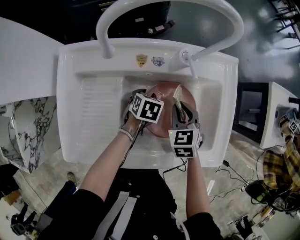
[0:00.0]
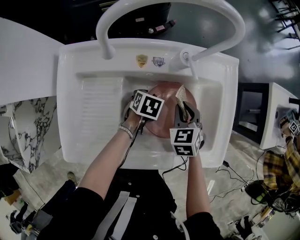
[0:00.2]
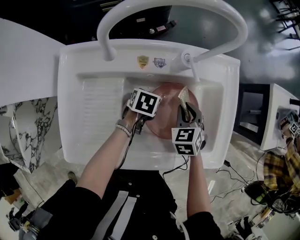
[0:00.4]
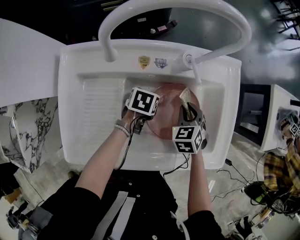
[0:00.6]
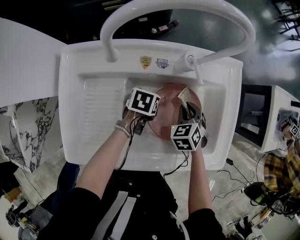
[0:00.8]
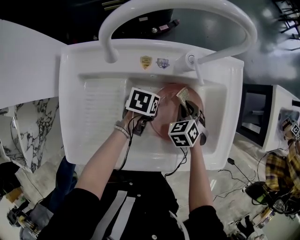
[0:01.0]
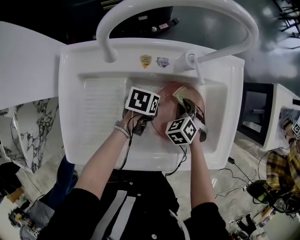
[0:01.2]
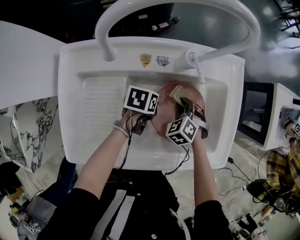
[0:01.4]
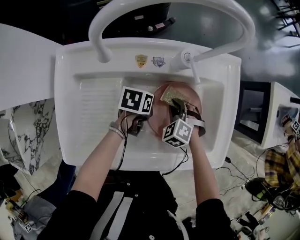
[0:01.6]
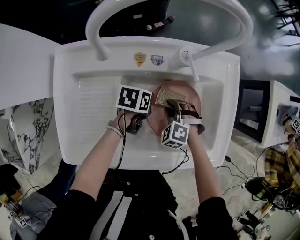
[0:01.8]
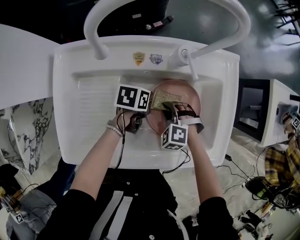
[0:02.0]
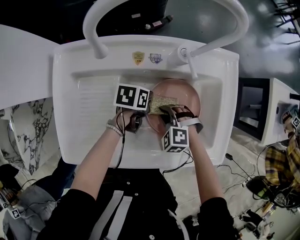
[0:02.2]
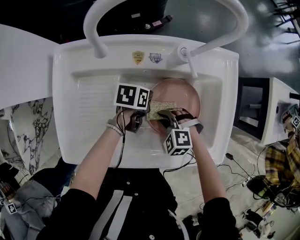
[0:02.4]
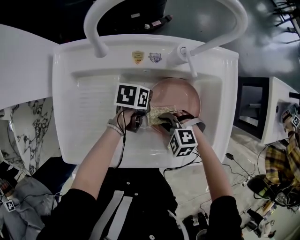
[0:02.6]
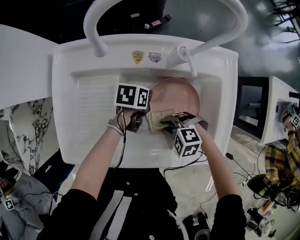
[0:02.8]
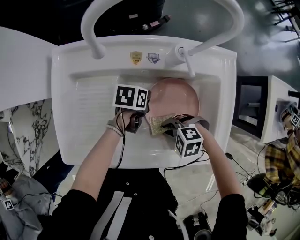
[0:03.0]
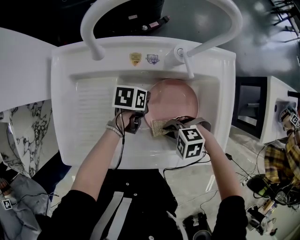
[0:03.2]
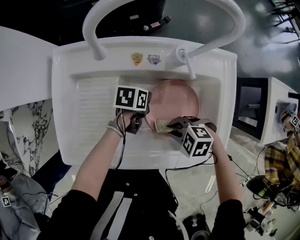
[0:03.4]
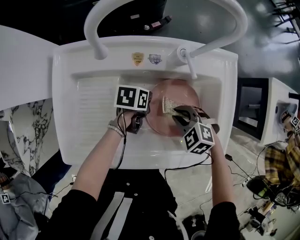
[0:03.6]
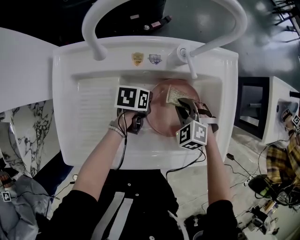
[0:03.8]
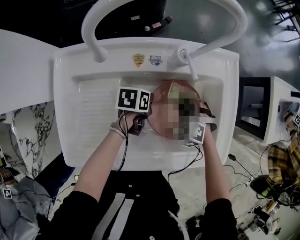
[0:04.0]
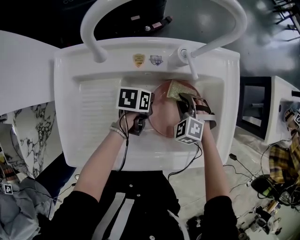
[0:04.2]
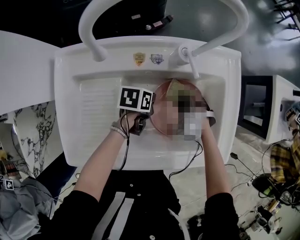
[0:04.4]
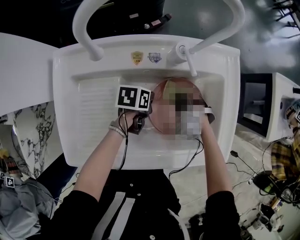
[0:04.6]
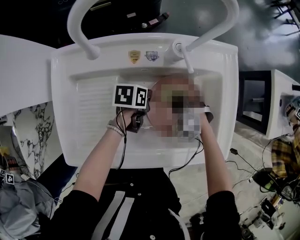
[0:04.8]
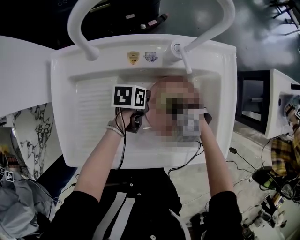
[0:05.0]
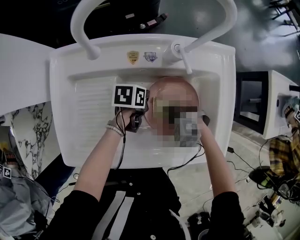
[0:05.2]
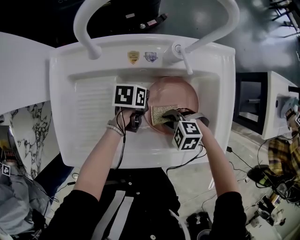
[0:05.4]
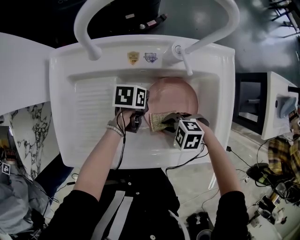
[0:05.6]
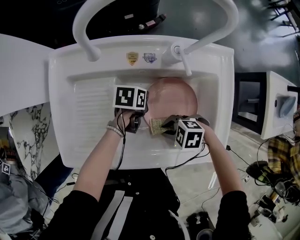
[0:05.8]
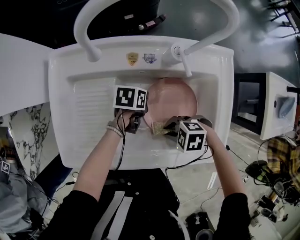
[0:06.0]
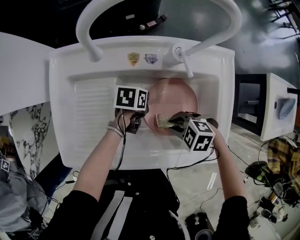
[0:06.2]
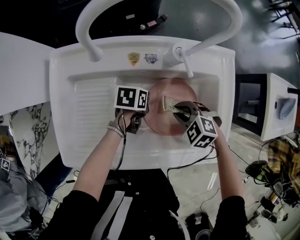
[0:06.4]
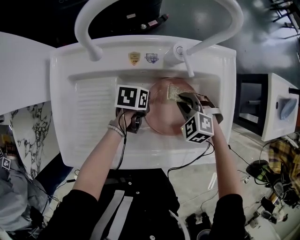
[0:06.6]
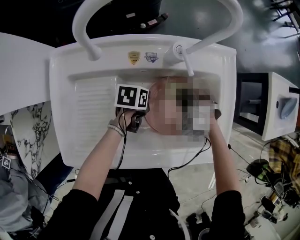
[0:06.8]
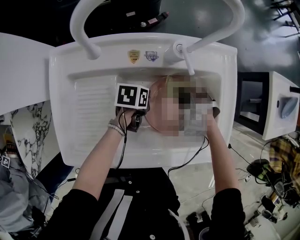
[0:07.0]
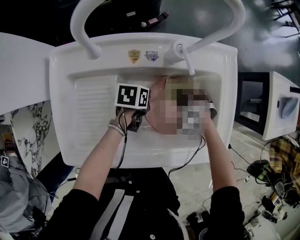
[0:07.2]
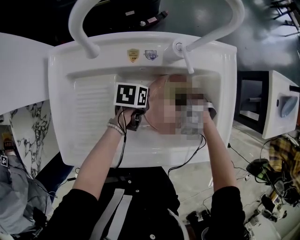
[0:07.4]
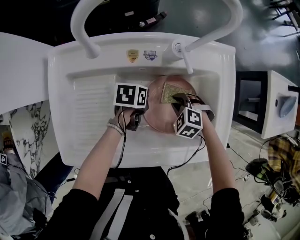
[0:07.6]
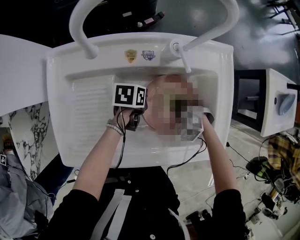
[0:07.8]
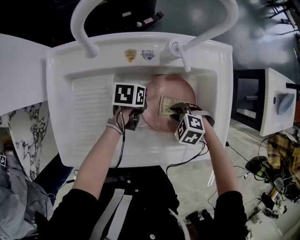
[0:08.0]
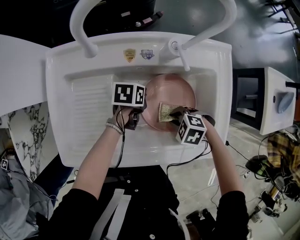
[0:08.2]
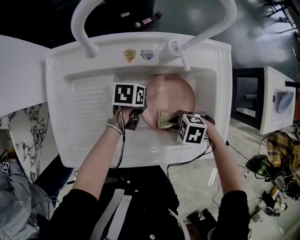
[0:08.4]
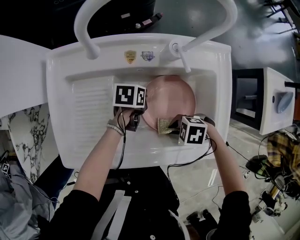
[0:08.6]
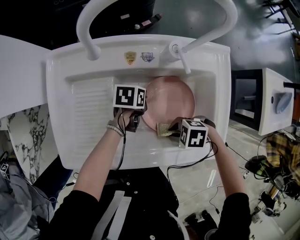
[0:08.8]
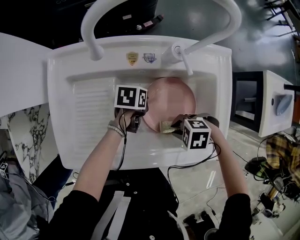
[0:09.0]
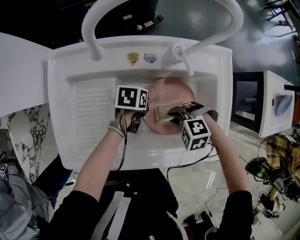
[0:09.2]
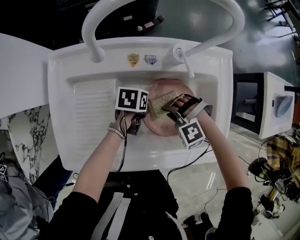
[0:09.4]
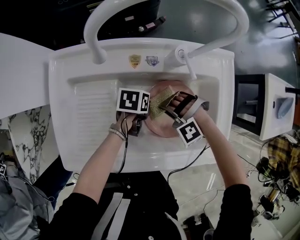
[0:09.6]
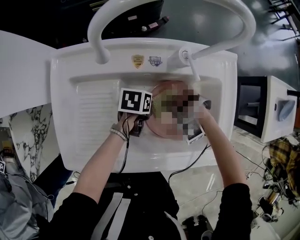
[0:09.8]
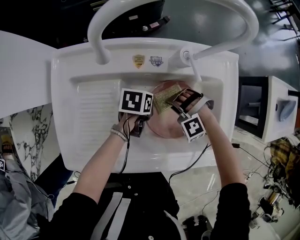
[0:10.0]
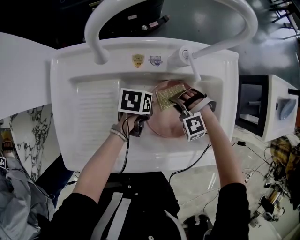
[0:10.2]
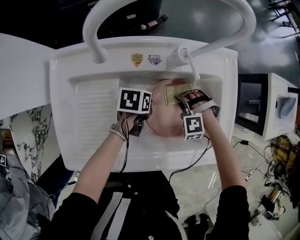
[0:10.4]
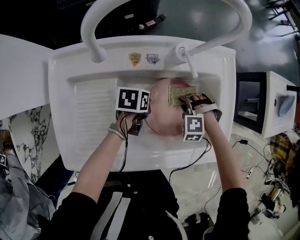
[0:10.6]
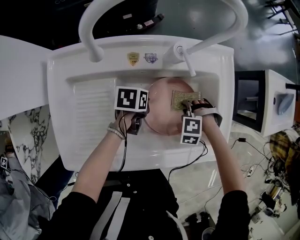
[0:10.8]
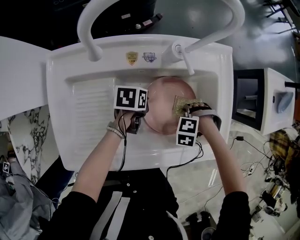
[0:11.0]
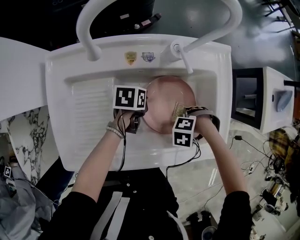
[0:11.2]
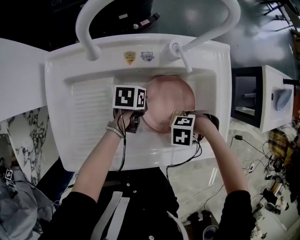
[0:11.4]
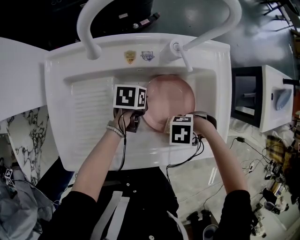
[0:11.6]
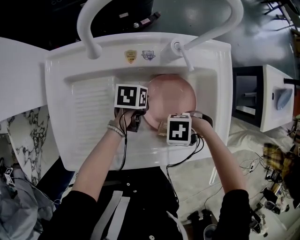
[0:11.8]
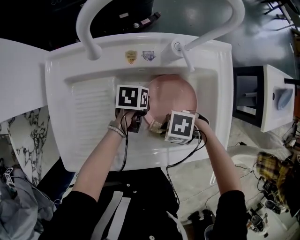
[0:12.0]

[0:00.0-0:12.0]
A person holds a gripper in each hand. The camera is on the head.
0:00.0 to 0:01.6: The right gripper goes some 10 cm downward, and turns by about 40 degrees. Meanwhile the left gripper rotates about 20 degrees, and closes up.
0:01.6 to 0:03.0: The right gripper moves about 15 cm, and swivels roughly 50 degrees.
0:03.0 to 0:04.4: The right gripper moves about 15 cm, and rotates roughly 40 degrees.
0:04.4 to 0:06.0: The right gripper shifts by some 15 cm, and swivels about 50 degrees.
0:06.0 to 0:07.6: The right gripper changes place by approximately 15 cm, and swivels some 40 degrees.
0:07.6 to 0:09.0: The right gripper moves some 15 cm, and rotates approximately 30 degrees.
0:09.0 to 0:10.4: The right gripper ends up roughly 15 cm from where it was, and swivels approximately 50 degrees.
0:10.4 to 0:12.0: The right gripper changes place by some 15 cm, and swivels about 70 degrees.

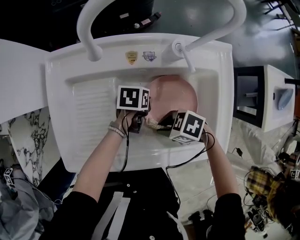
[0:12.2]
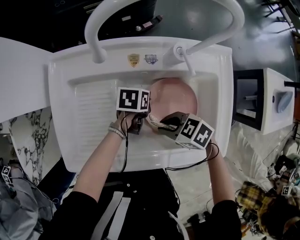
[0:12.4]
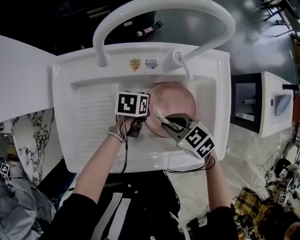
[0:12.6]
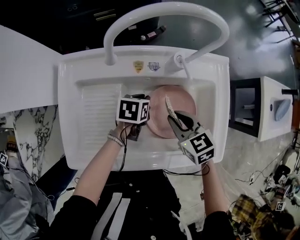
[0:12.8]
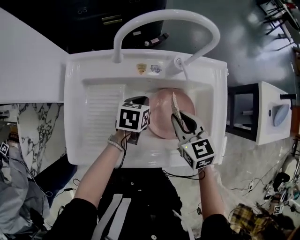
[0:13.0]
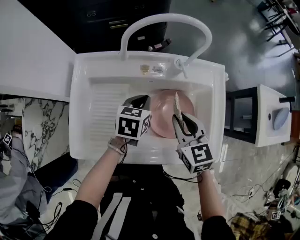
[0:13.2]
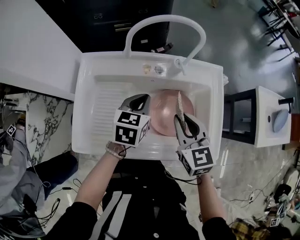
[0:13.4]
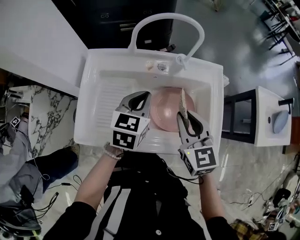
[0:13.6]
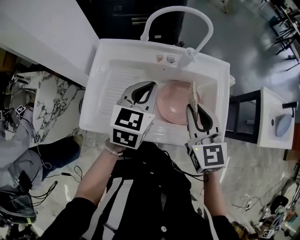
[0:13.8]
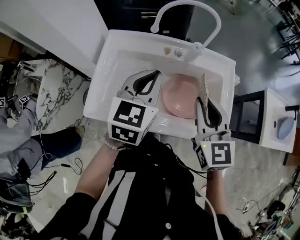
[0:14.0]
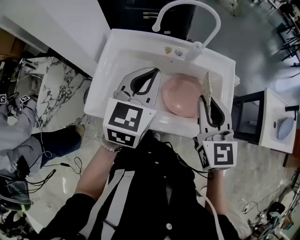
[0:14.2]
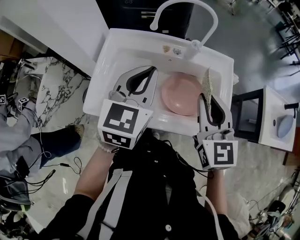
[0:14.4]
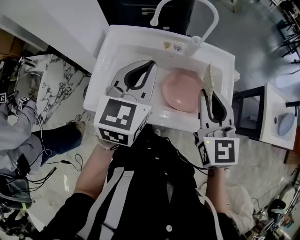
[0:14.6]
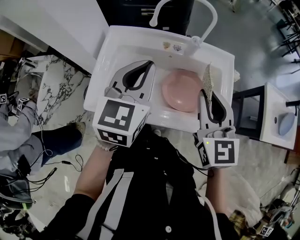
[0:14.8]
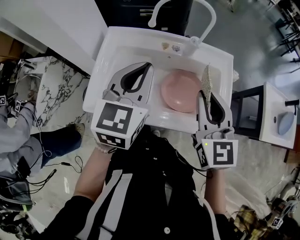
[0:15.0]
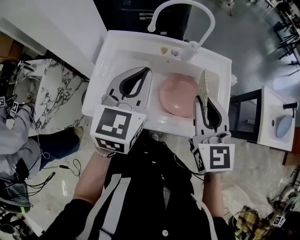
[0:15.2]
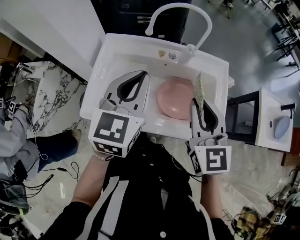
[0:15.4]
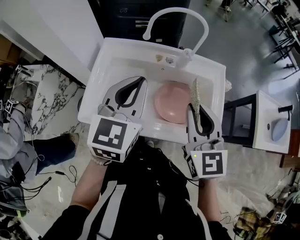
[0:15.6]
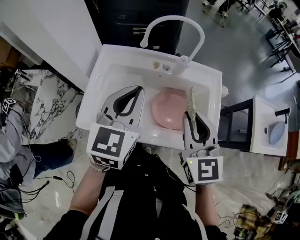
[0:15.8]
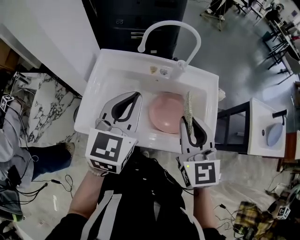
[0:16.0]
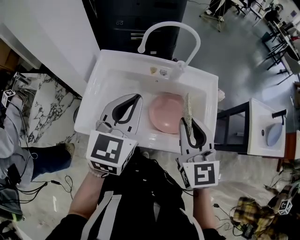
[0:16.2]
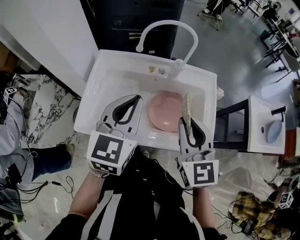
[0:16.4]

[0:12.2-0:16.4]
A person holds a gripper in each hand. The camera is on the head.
0:12.2 to 0:13.6: Both grippers move upward, about 25 cm. The left gripper changes its angle by some 50 degrees, while the right gripper turns by approximately 80 degrees.
0:13.6 to 0:15.0: The left gripper shifts some 15 cm upward and backward. Meanwhile the right gripper goes about 10 cm upward and backward.
0:15.0 to 0:16.4: There are only small adjustments of the grippers.

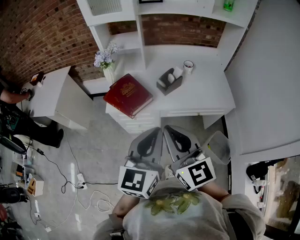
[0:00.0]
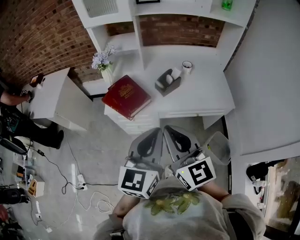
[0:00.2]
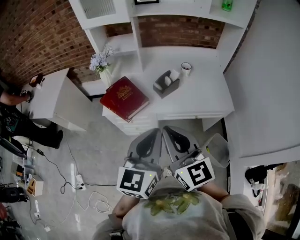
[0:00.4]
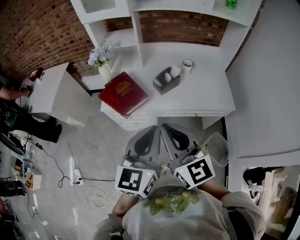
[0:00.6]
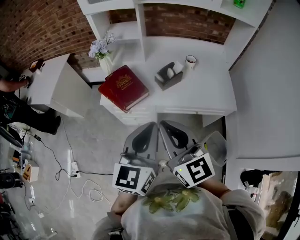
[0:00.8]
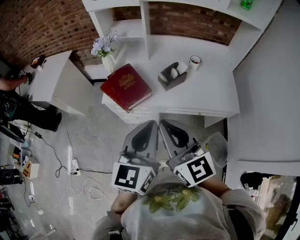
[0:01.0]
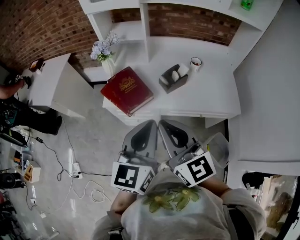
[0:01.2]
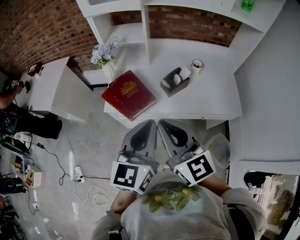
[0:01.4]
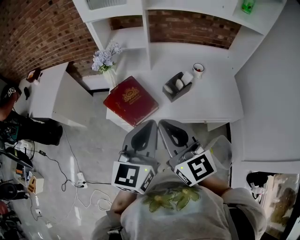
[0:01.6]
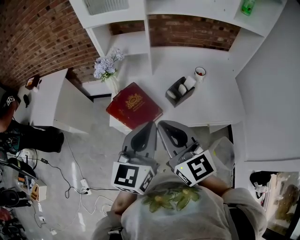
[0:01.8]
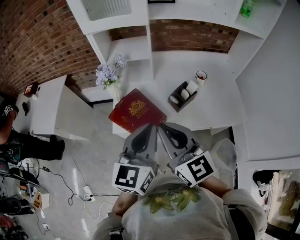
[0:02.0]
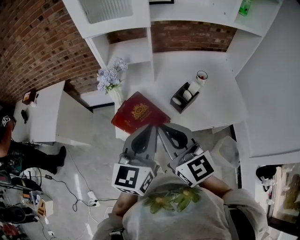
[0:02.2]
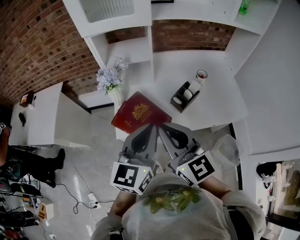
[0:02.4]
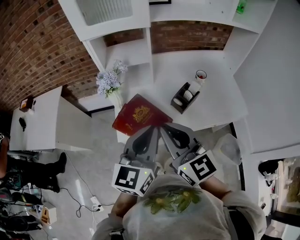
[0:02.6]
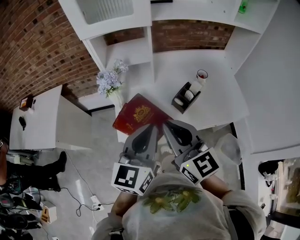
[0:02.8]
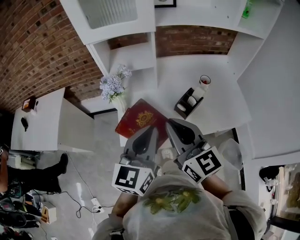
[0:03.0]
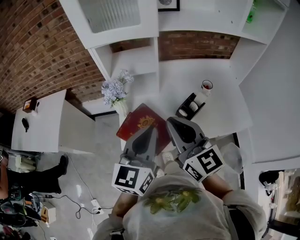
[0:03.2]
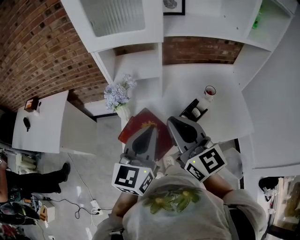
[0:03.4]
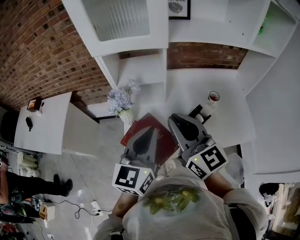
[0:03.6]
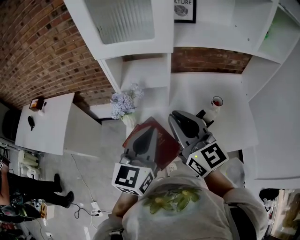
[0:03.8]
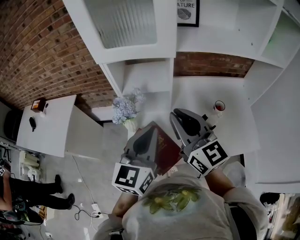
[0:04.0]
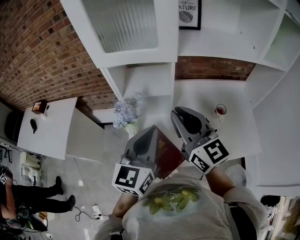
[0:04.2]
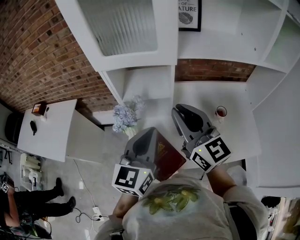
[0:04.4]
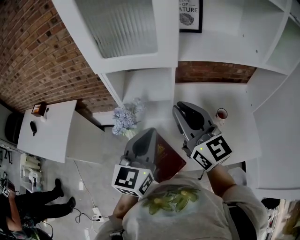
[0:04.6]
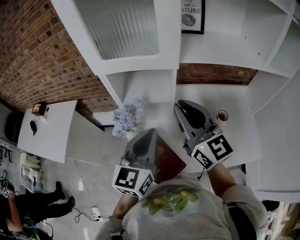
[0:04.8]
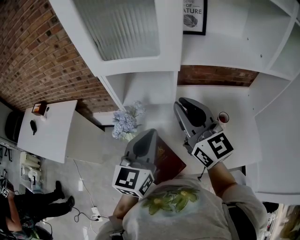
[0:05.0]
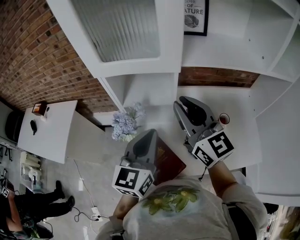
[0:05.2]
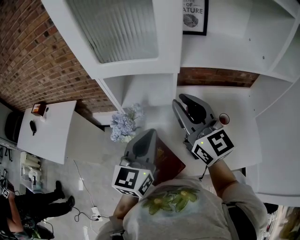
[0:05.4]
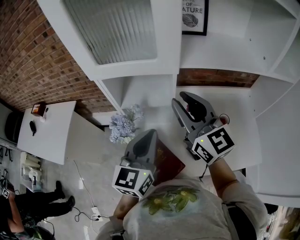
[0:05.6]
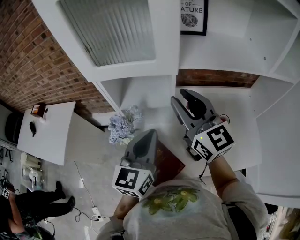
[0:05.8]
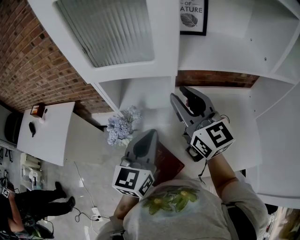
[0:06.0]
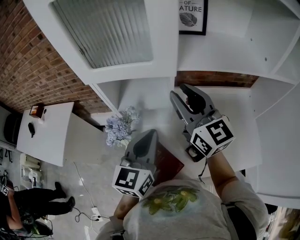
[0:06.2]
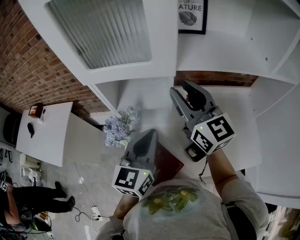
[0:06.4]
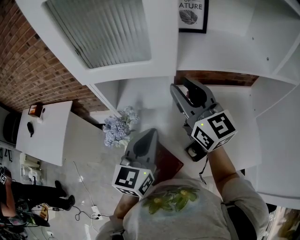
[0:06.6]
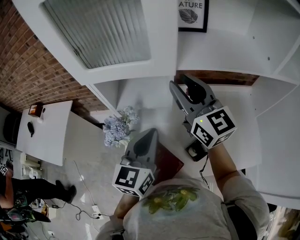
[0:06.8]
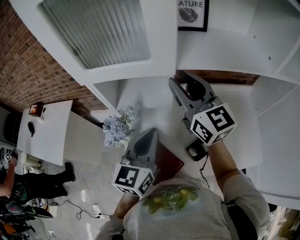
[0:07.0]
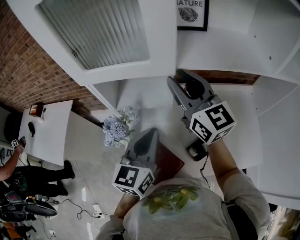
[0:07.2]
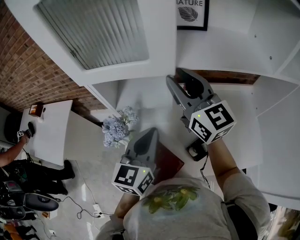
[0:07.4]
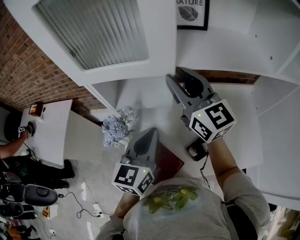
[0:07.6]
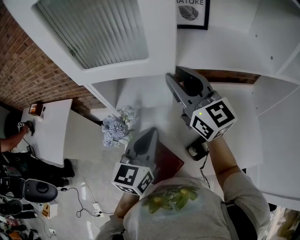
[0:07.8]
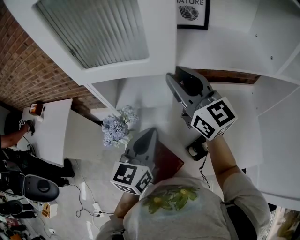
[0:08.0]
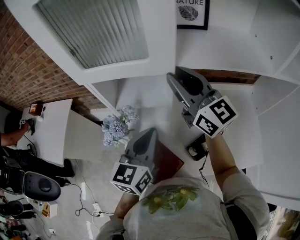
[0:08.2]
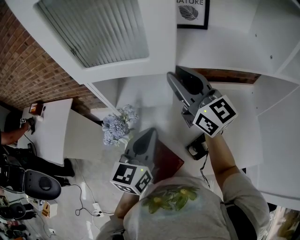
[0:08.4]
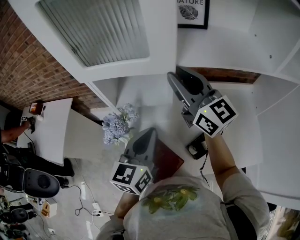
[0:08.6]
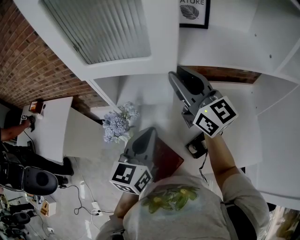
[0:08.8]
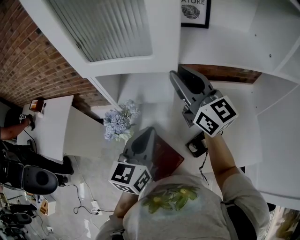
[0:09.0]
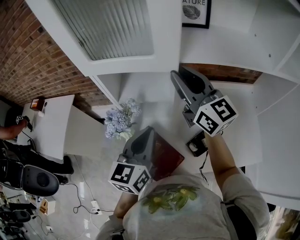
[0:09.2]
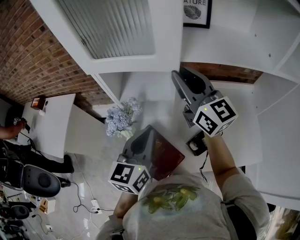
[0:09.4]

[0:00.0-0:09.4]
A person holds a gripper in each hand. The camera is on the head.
0:00.0 to 0:01.6: Both grippers travel together forward, about 15 cm.
0:01.6 to 0:03.2: Both grippers move forward and to the left, some 15 cm.
0:03.2 to 0:04.8: Both grippers move forward, roughly 15 cm.
0:04.8 to 0:06.2: The right gripper shifts some 10 cm forward, and opens its fingers. The left gripper ends up roughly 5 cm from where it was.
0:06.2 to 0:07.8: The right gripper moves forward, some 5 cm.
0:07.8 to 0:09.4: The grippers stay close to where they were, moving slightly.
